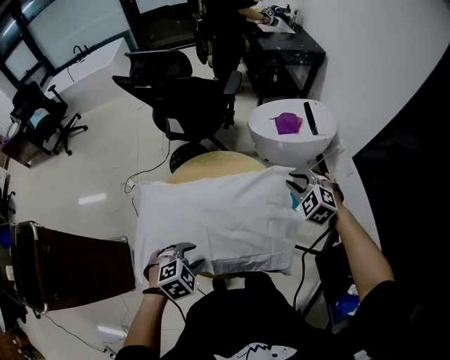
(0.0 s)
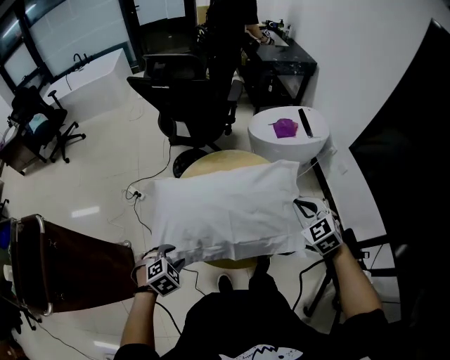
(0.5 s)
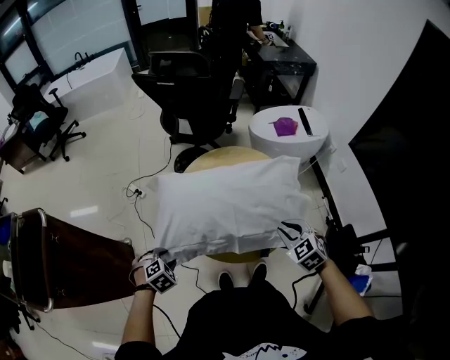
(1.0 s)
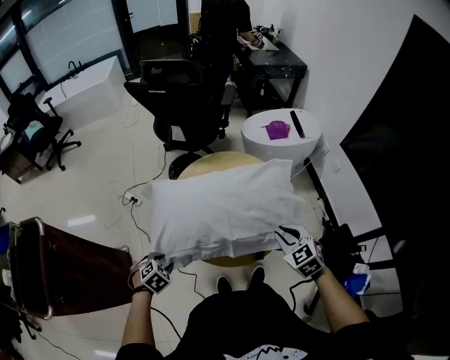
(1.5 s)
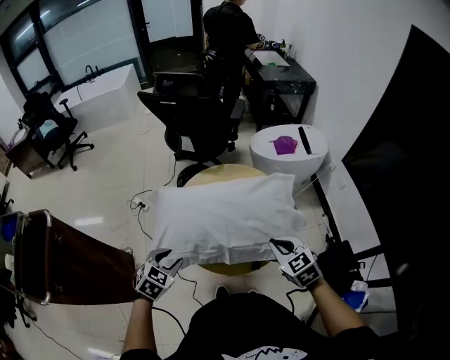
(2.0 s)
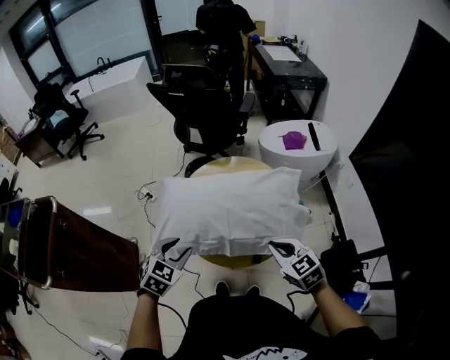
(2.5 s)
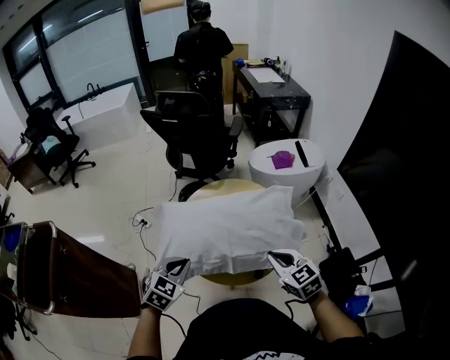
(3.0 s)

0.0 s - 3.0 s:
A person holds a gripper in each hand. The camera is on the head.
0.0 s - 1.5 s: The left gripper is displaced to the left, backward and downward by some 25 cm. Meanwhile the right gripper shifts some 25 cm backward, and changes its angle by some 30 degrees.
1.5 s - 3.0 s: The right gripper moves upward, about 5 cm. The left gripper travels upward and to the right by roughly 20 cm, angles its fingers upward, by about 30 degrees, and closes its fingers.

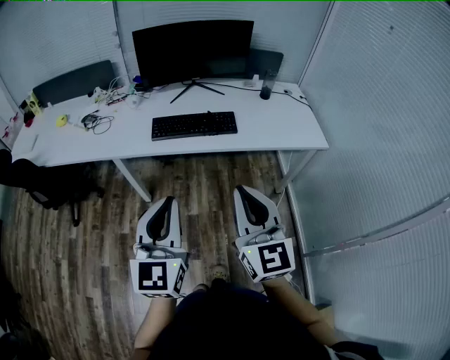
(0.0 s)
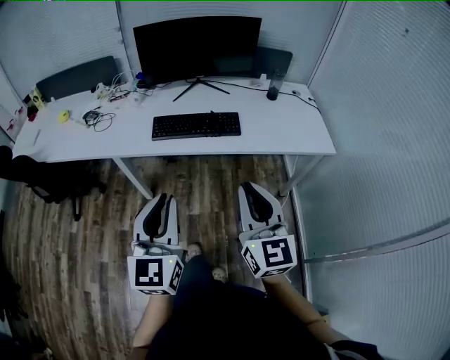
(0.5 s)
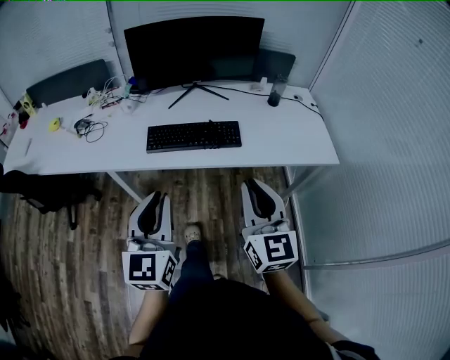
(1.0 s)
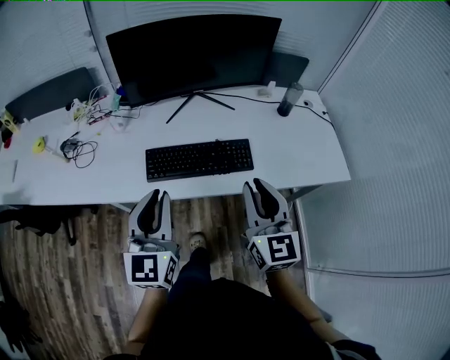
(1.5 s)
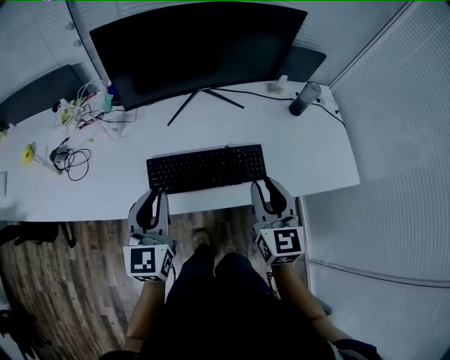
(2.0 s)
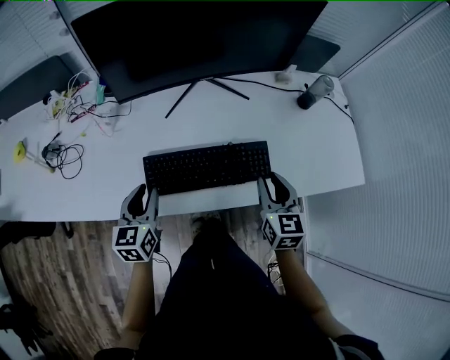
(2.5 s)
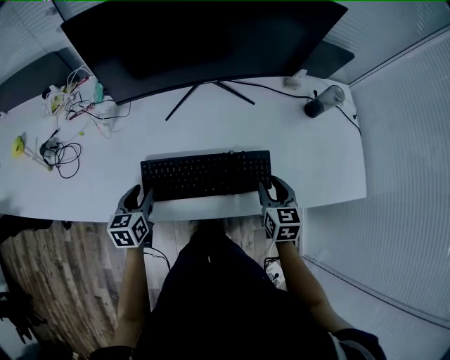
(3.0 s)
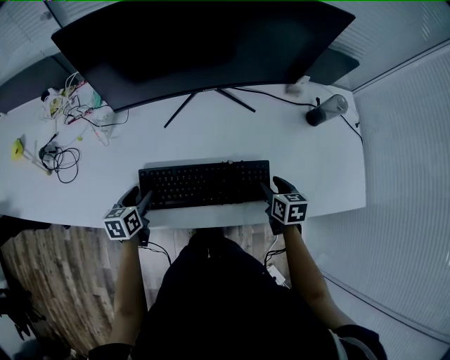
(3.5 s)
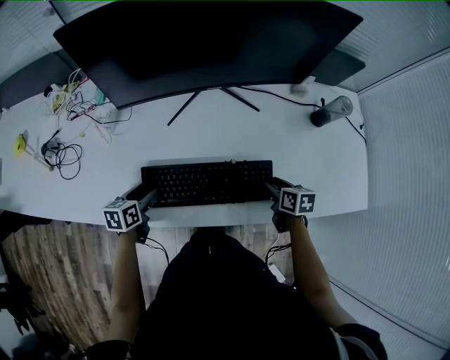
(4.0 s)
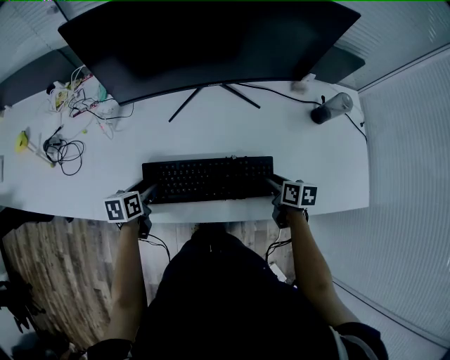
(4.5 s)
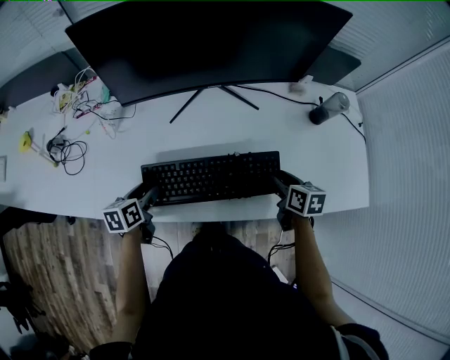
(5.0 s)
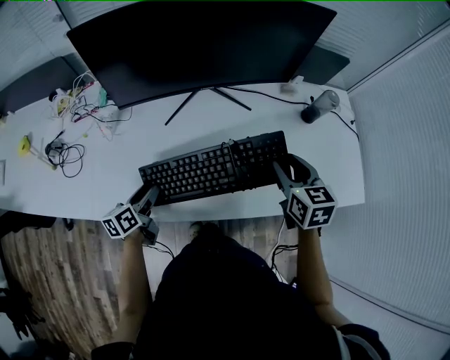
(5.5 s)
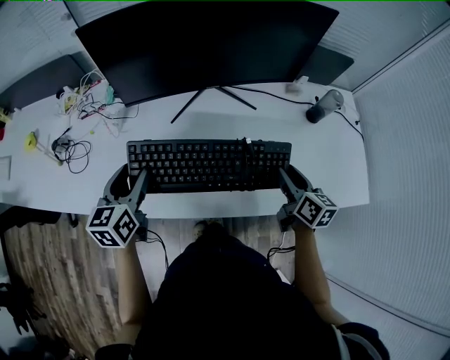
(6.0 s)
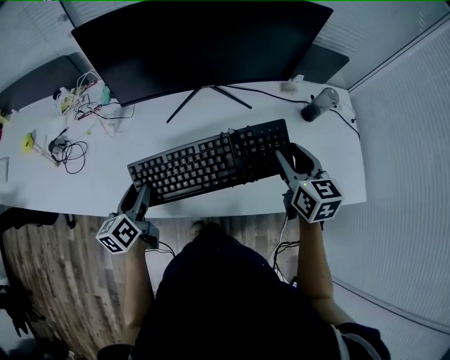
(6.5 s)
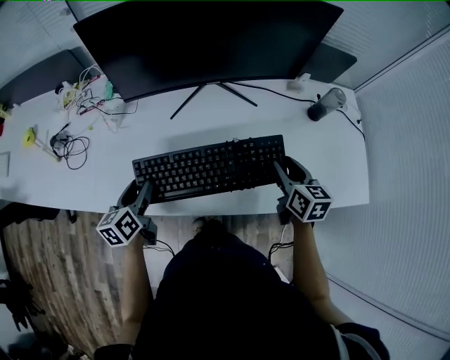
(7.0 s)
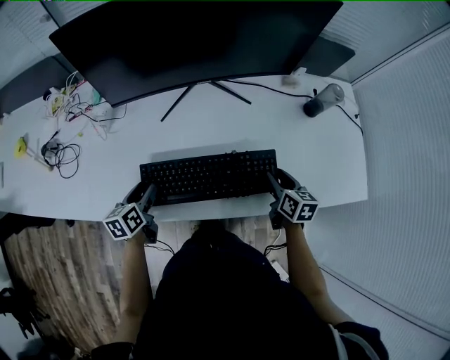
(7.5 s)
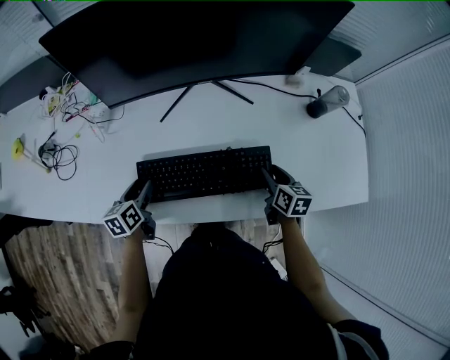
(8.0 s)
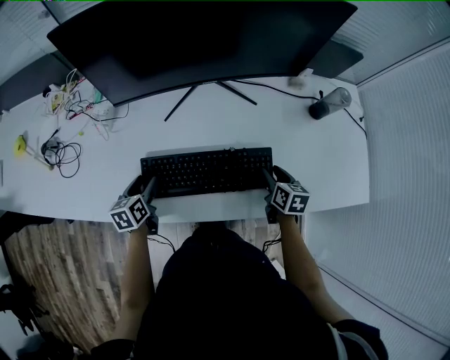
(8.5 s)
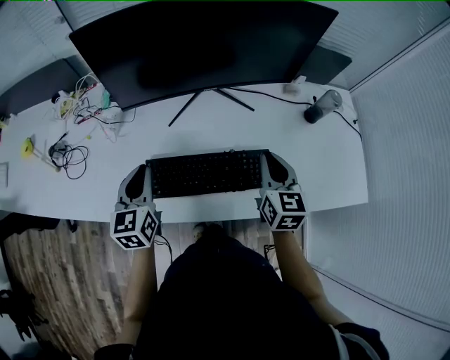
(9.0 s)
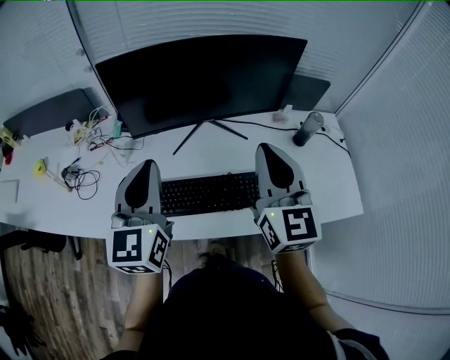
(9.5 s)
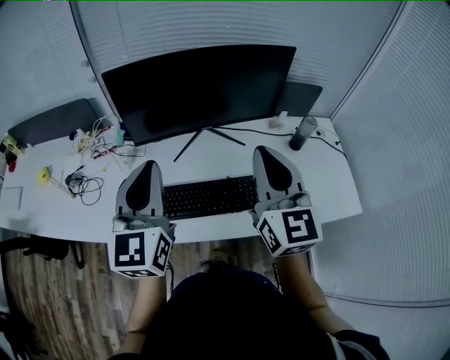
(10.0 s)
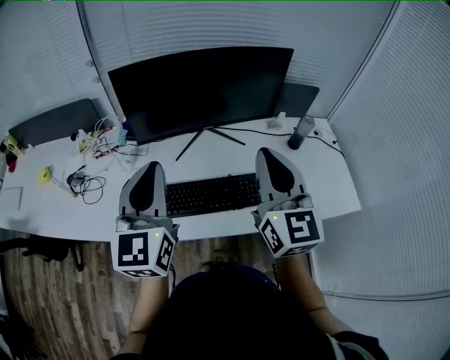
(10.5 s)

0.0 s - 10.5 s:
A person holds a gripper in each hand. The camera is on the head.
0.0 s - 2.0 s: Both grippers move forward, approximately 40 cm. The right gripper turns by some 20 degrees.
2.0 s - 4.0 s: The left gripper travels downward by some 25 cm, tilts its fingers approximately 30 degrees downward, and opens its fingers. The right gripper shifts about 30 cm downward and forward, tips its fingers downward by about 40 degrees, and opens.
4.0 s - 6.5 s: The right gripper moves up and down over roughly 25 cm, changing direction 2 times, and turns by about 40 degrees; the left gripper is displaced upward by some 15 cm, and changes its angle by about 30 degrees.
6.5 s - 8.5 s: The left gripper travels downward by about 10 cm, and rotates roughly 20 degrees, while the right gripper travels downward by roughly 20 cm, and turns by roughly 30 degrees.
8.5 s - 10.5 s: Both grippers move upward, about 40 cm. The left gripper points its fingers some 40 degrees further upward, and closes; the right gripper angles its fingers upward, by some 50 degrees, and closes up.

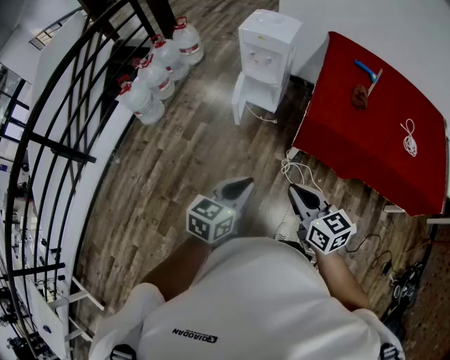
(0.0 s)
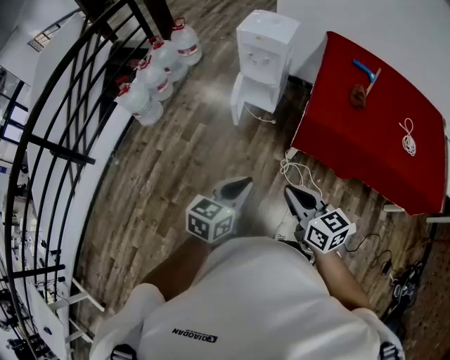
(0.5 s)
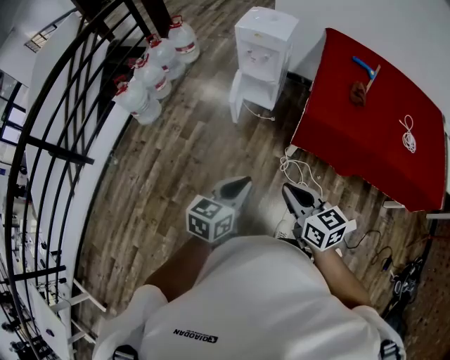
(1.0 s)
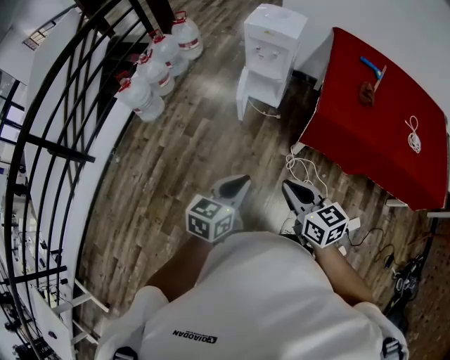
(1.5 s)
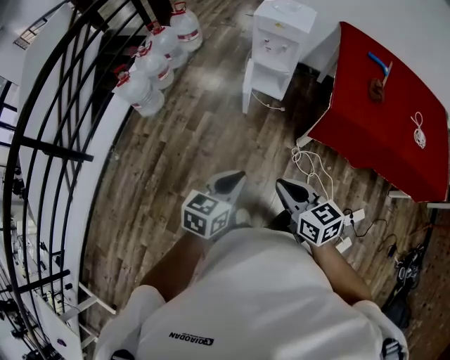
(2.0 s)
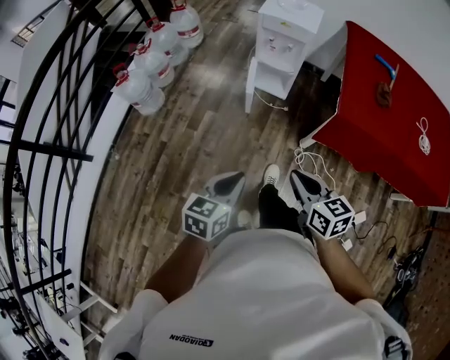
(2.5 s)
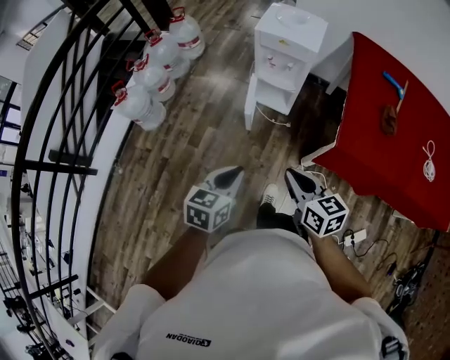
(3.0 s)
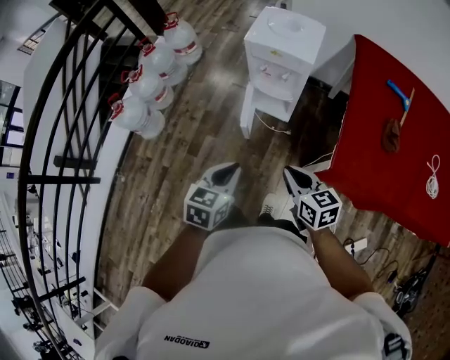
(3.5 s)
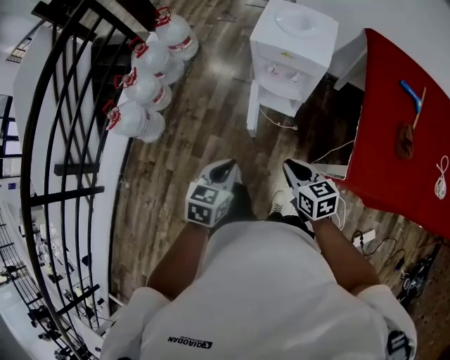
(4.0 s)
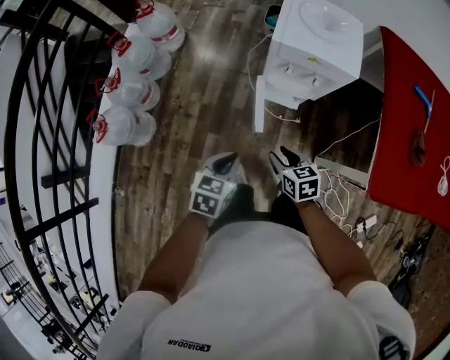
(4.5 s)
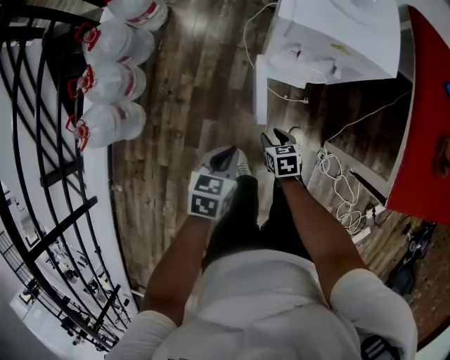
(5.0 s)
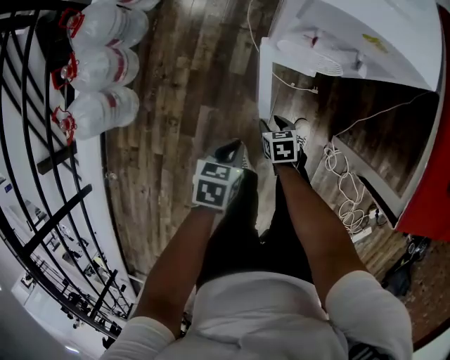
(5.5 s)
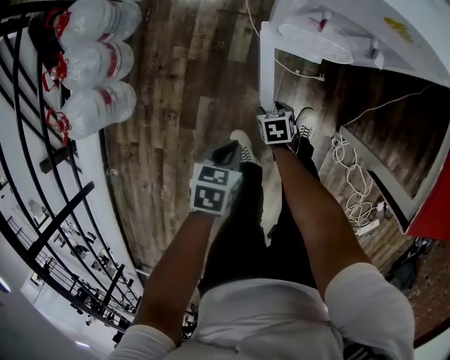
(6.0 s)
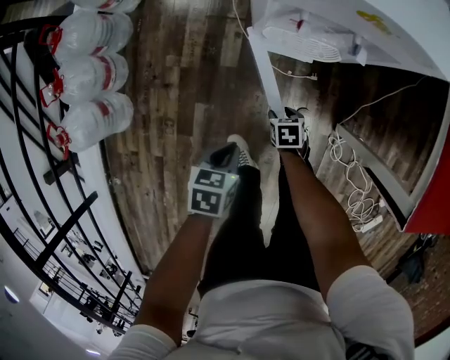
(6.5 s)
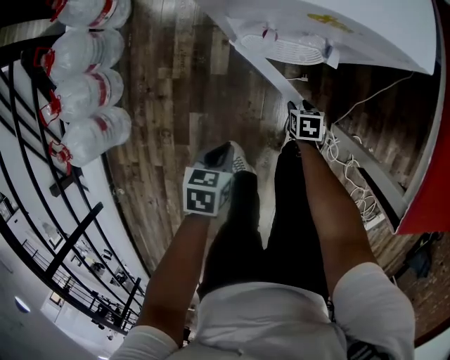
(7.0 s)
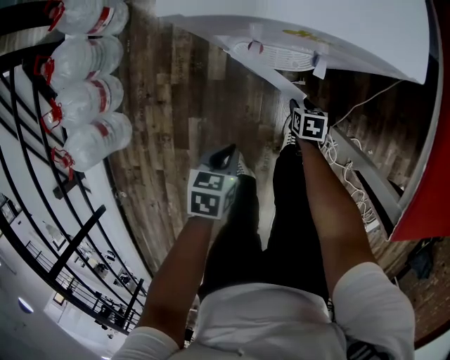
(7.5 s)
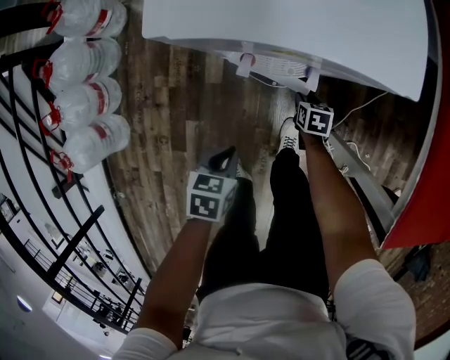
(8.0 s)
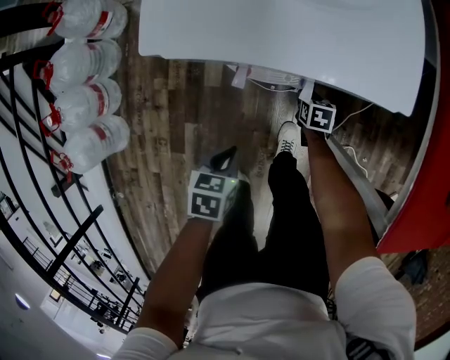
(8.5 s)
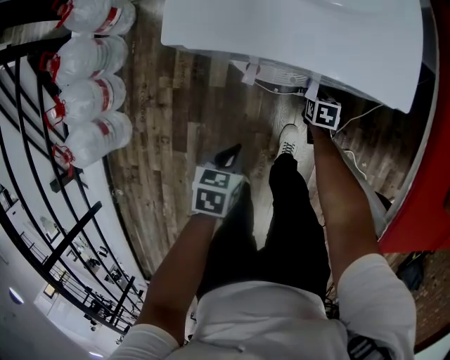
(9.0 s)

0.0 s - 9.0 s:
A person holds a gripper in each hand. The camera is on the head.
0.0 s - 2.0 s: The two grippers go about 15 cm to the left.
2.0 s - 4.5 s: The pair of grippers is taken forward, roughly 50 cm. The right gripper heads downward, covering about 20 cm, changes its angle by about 20 degrees, and opens.
4.5 s - 7.0 s: The right gripper is displaced downward and forward by roughly 40 cm, and swivels about 30 degrees. The left gripper travels downward by some 25 cm, and swivels about 20 degrees.
7.0 s - 9.0 s: The right gripper goes some 15 cm forward. Meanwhile the left gripper goes roughly 5 cm forward.

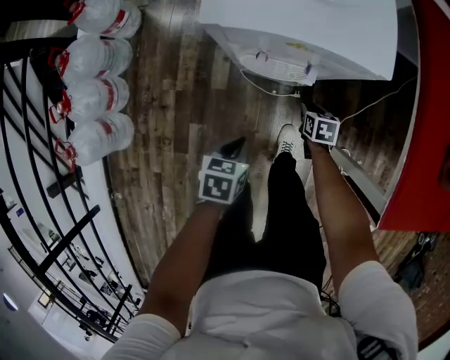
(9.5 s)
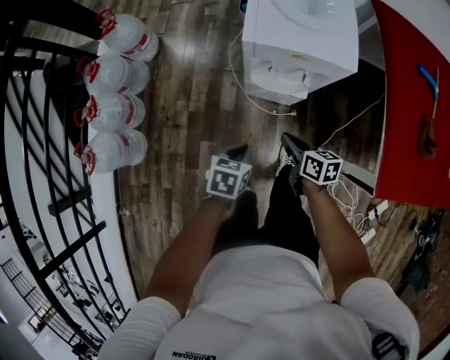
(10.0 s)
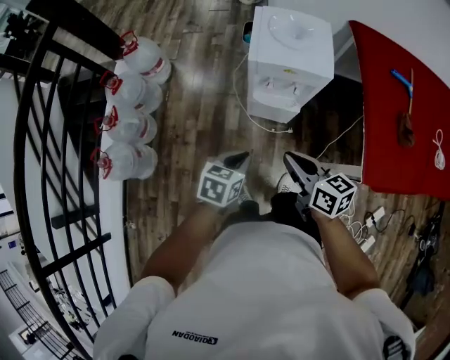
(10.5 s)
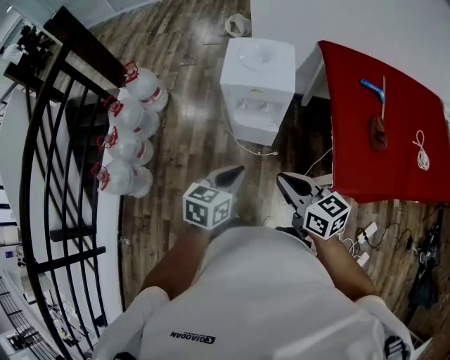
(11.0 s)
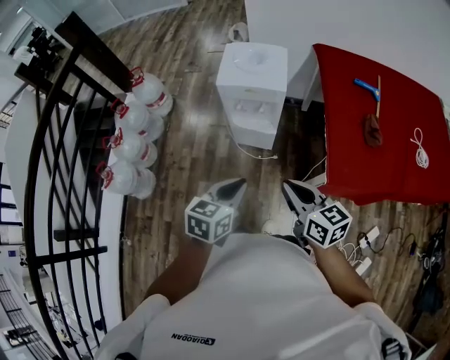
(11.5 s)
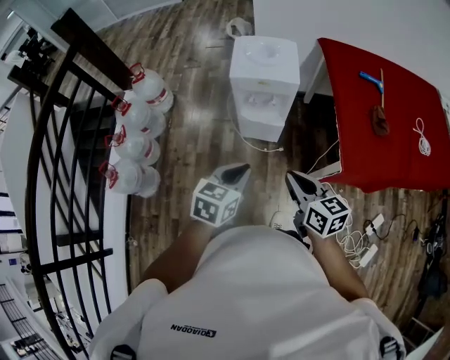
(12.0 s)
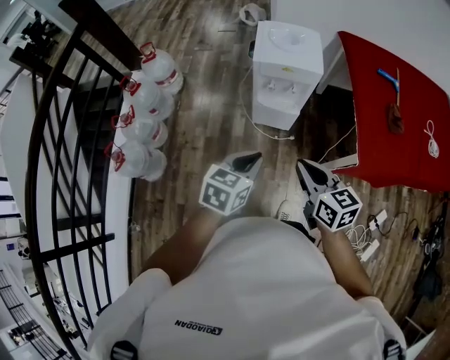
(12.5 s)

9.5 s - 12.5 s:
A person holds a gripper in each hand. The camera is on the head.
9.5 s - 11.0 s: The left gripper shifts some 35 cm upward, and swivels some 30 degrees. Meanwhile the right gripper shifts about 60 cm upward and backward, points its fingers approximately 40 degrees further upward, and closes.
11.0 s - 12.5 s: Both grippers move to the left and backward, roughly 10 cm.
